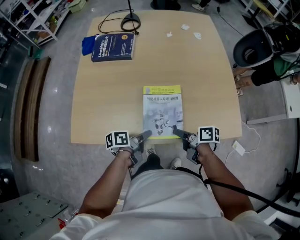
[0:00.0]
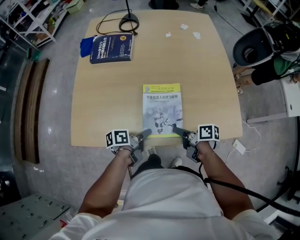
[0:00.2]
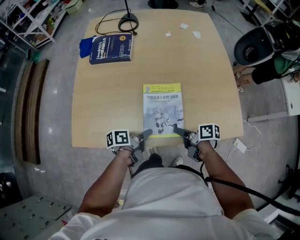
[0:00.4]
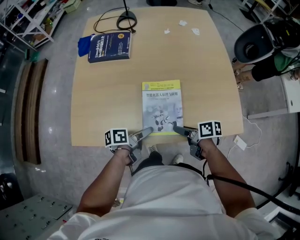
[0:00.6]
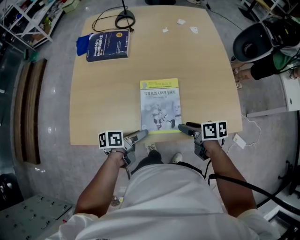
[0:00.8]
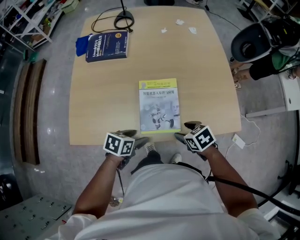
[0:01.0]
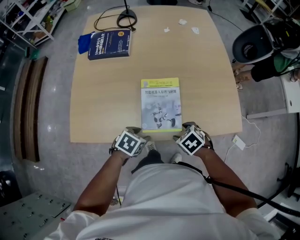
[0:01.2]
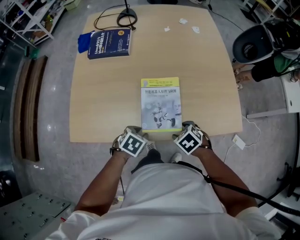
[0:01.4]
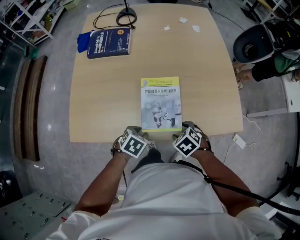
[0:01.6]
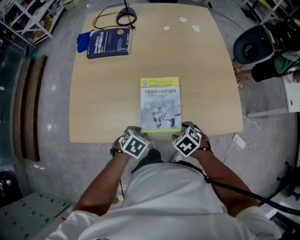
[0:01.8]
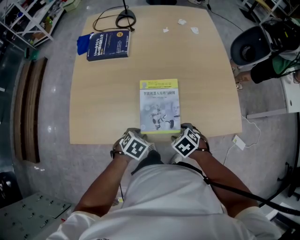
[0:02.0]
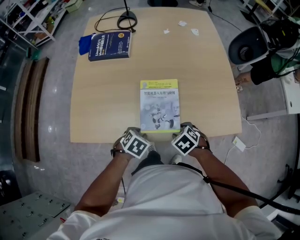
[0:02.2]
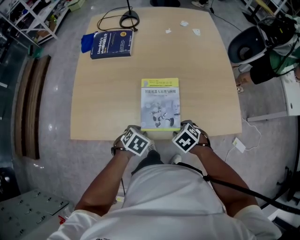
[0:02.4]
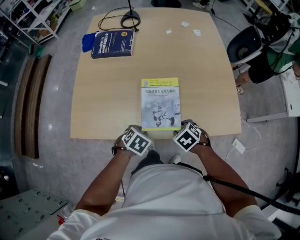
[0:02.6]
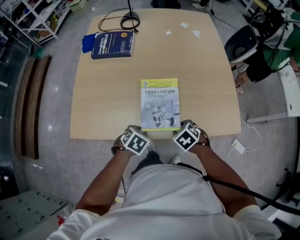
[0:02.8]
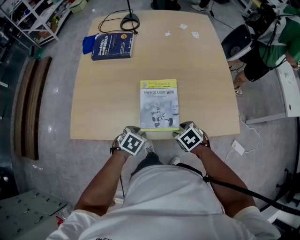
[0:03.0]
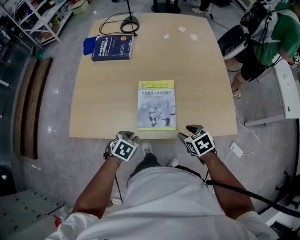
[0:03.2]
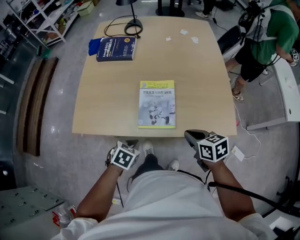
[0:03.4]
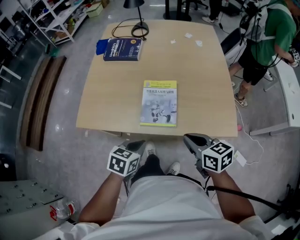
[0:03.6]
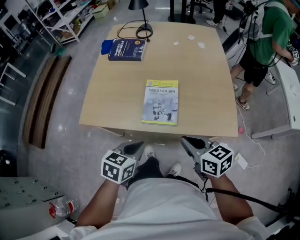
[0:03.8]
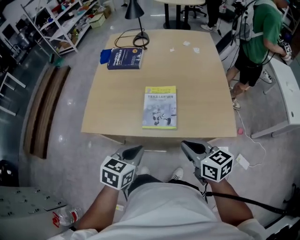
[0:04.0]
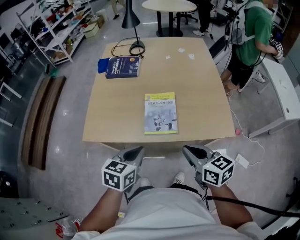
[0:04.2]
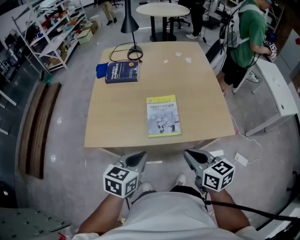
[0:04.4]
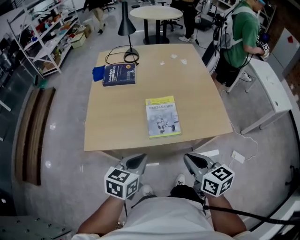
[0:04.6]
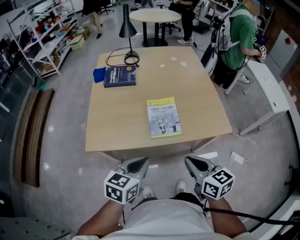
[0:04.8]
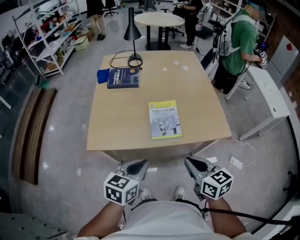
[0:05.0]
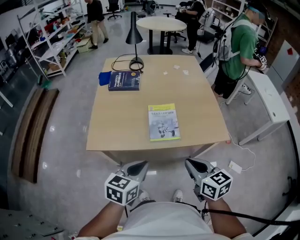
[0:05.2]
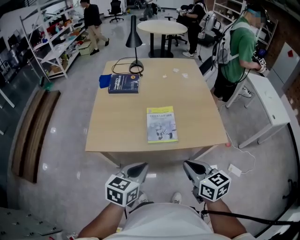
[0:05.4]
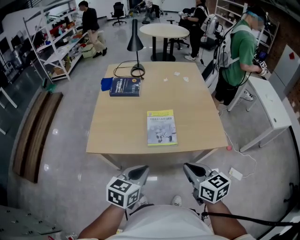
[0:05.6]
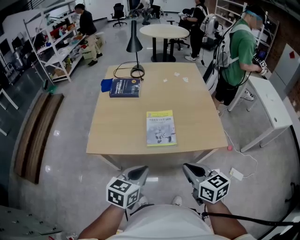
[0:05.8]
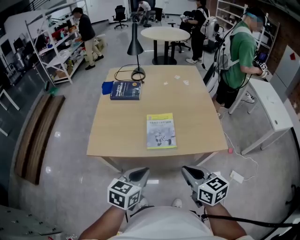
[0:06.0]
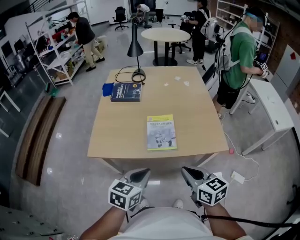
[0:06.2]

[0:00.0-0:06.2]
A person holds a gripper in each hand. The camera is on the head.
0.0 to 1.6 s: The right gripper rolls counterclockwise, seen from behind, by some 70 degrees, and opens. The left gripper rotates around the line of its fingers by approximately 60 degrees, clockwise from behind, and opens and closes again.
1.6 to 3.2 s: The right gripper shifts by roughly 5 cm, and changes its angle by some 20 degrees.
3.2 to 4.6 s: The left gripper shifts roughly 20 cm upward, angles its fingers upward, by some 40 degrees, and closes; the right gripper travels upward, backward and to the left by about 25 cm, points its fingers roughly 40 degrees further upward, and closes up.
4.6 to 6.2 s: The left gripper changes place by some 5 cm.

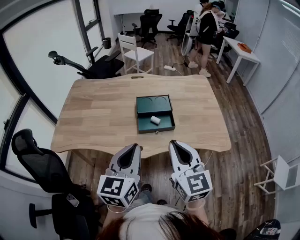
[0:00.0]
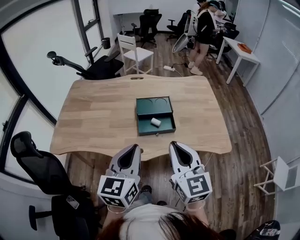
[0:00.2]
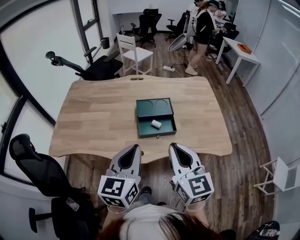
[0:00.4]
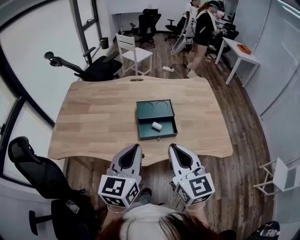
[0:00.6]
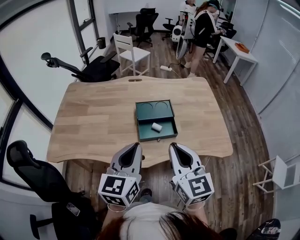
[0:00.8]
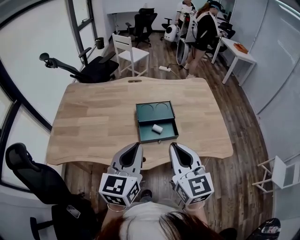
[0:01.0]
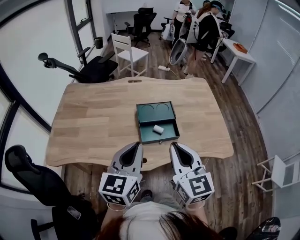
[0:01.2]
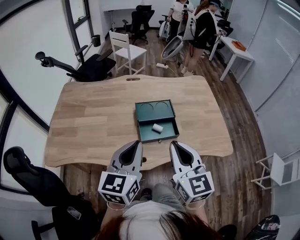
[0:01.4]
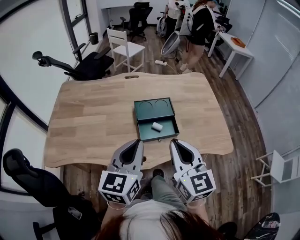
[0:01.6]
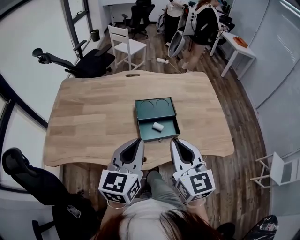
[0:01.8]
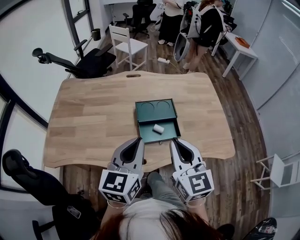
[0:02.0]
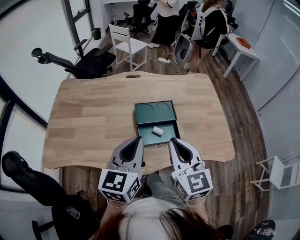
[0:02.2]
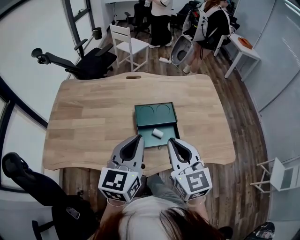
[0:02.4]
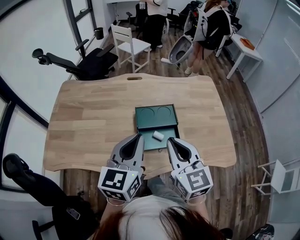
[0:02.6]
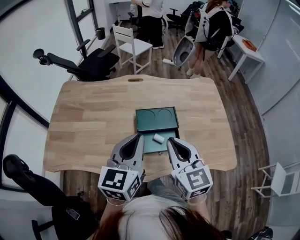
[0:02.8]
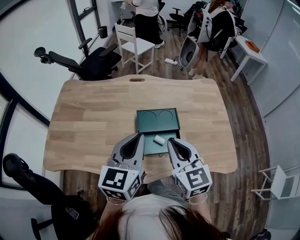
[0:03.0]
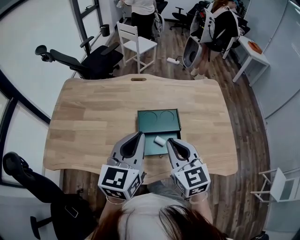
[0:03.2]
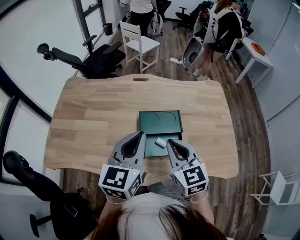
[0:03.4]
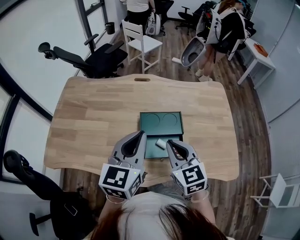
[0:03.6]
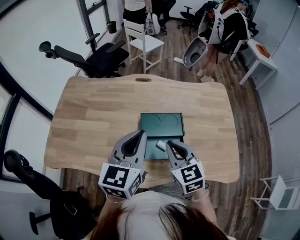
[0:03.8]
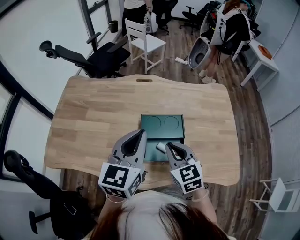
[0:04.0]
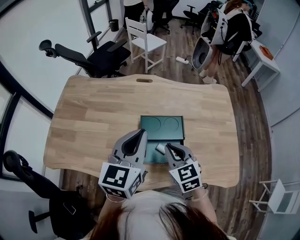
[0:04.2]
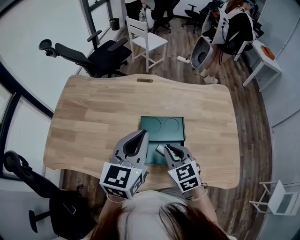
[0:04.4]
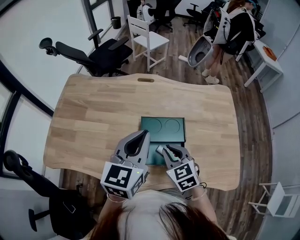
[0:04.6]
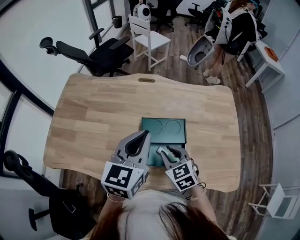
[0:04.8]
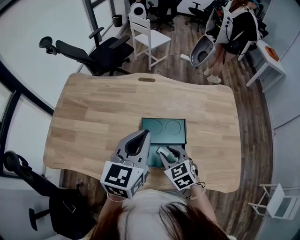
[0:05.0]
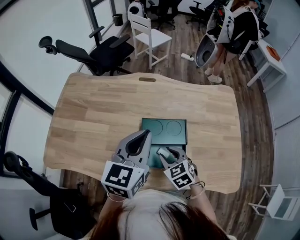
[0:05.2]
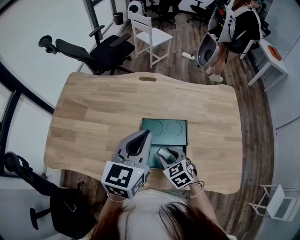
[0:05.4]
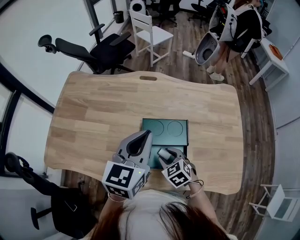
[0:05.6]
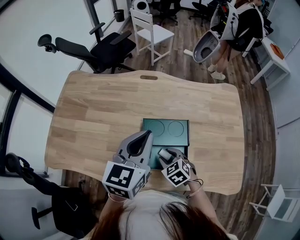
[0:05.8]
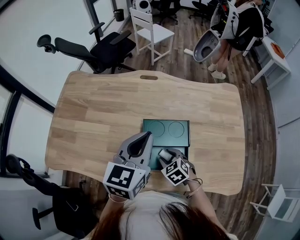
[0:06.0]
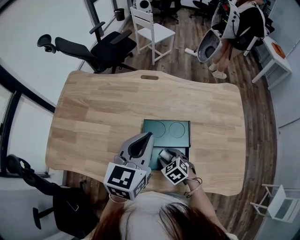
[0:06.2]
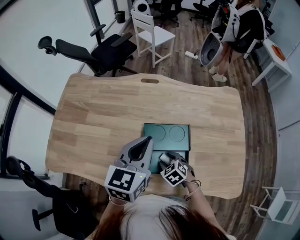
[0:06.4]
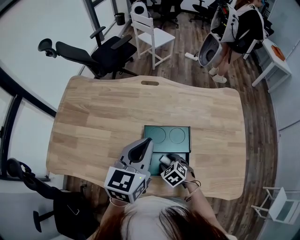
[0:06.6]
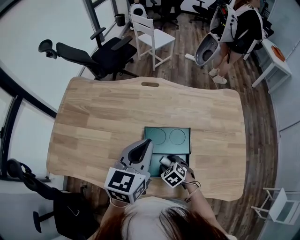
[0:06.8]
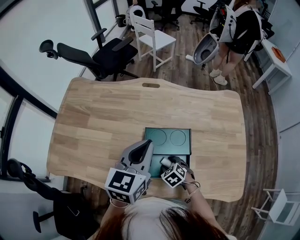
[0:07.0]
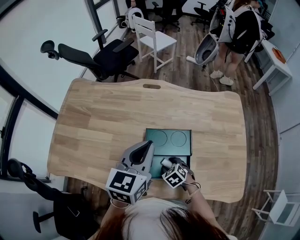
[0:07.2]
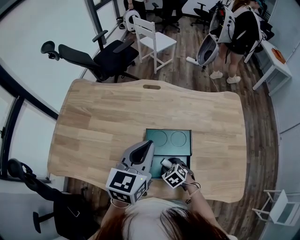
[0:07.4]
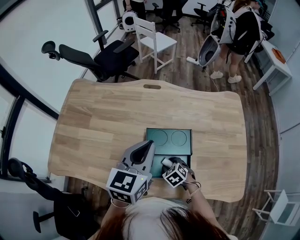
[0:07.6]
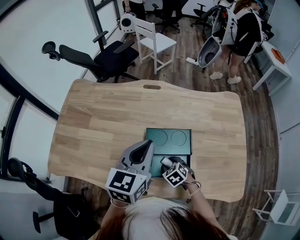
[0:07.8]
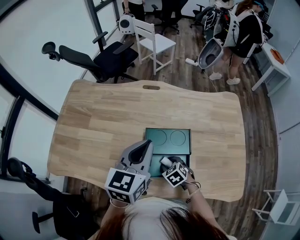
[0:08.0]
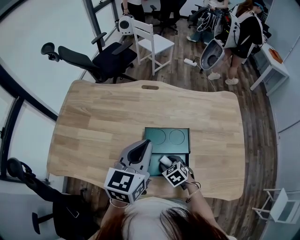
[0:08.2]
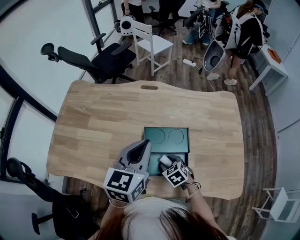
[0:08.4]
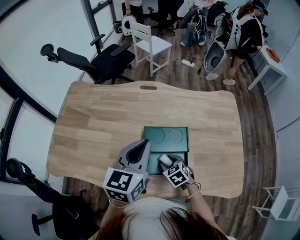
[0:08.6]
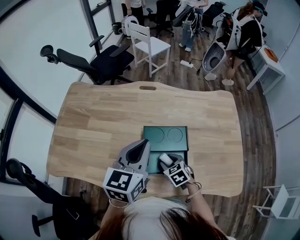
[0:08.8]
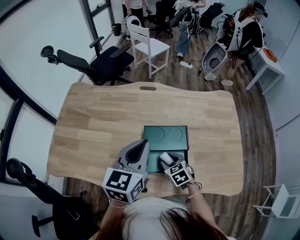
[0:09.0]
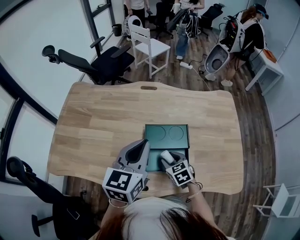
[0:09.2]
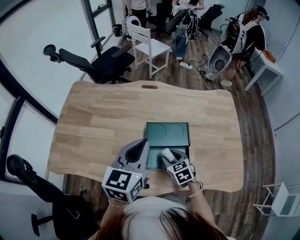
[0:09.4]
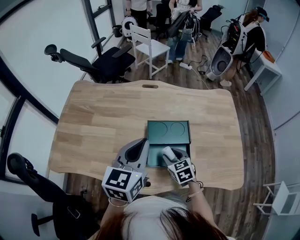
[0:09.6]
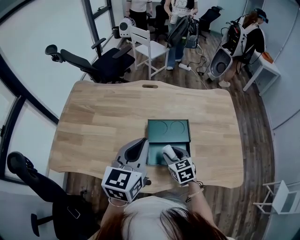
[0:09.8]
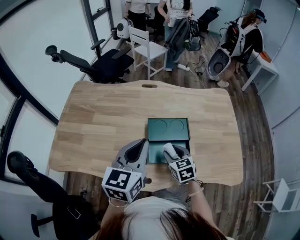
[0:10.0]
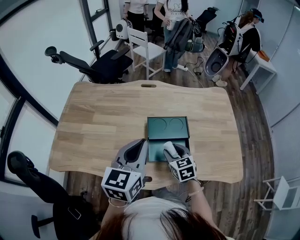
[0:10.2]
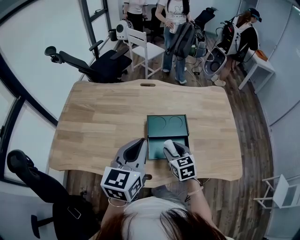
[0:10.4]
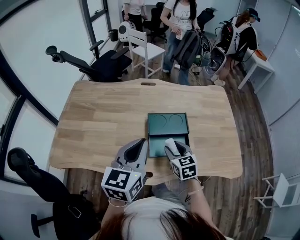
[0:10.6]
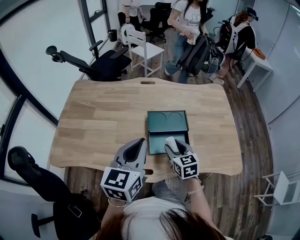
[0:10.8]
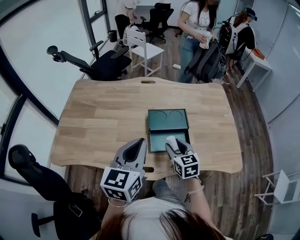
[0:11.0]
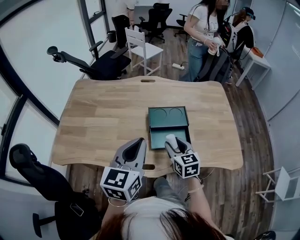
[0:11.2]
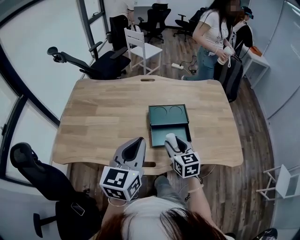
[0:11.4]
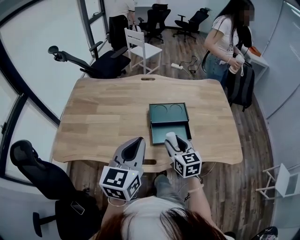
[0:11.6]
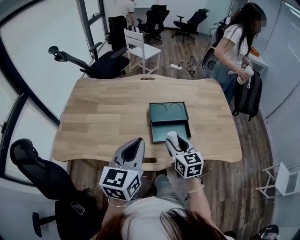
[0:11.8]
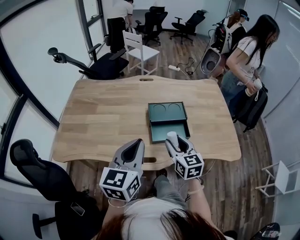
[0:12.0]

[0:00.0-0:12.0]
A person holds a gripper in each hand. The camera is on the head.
0.0 to 1.6 s: Both grippers travel together forward, some 10 cm.
1.6 to 3.0 s: The grippers both shift forward by about 10 cm.
3.0 to 4.4 s: The left gripper moves forward, roughly 10 cm; the right gripper is displaced downward and forward by about 15 cm, and turns by about 20 degrees.
4.4 to 6.0 s: The right gripper goes about 15 cm downward, swivels about 30 degrees, and opens its fingers, while the left gripper moves forward, roughly 5 cm.
6.0 to 7.6 s: The right gripper moves downward, roughly 5 cm.
7.6 to 9.0 s: The right gripper travels upward by some 5 cm.
9.0 to 10.4 s: The right gripper heads upward, covering approximately 10 cm, and rotates about 20 degrees. Meanwhile the left gripper travels backward by about 10 cm.
10.4 to 12.0 s: The right gripper travels backward and upward by roughly 15 cm. The left gripper heads backward, covering approximately 10 cm.

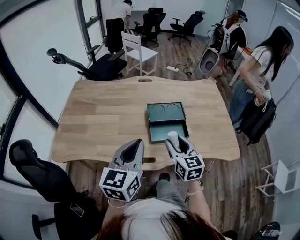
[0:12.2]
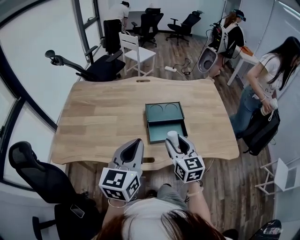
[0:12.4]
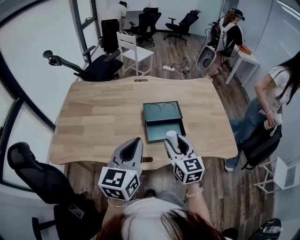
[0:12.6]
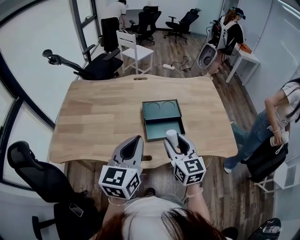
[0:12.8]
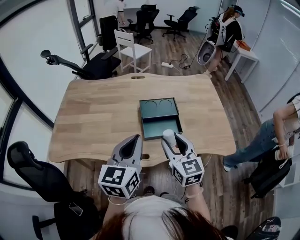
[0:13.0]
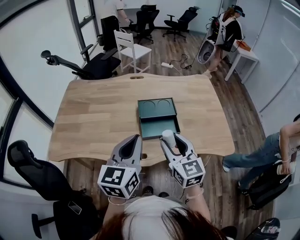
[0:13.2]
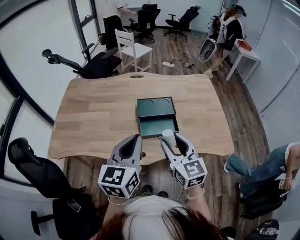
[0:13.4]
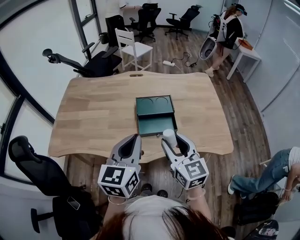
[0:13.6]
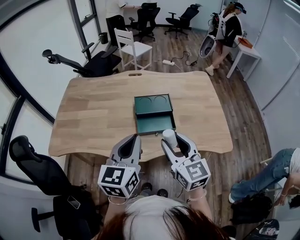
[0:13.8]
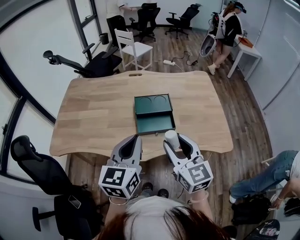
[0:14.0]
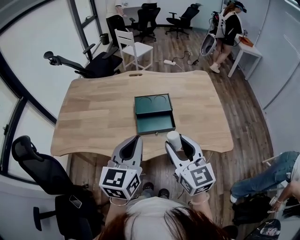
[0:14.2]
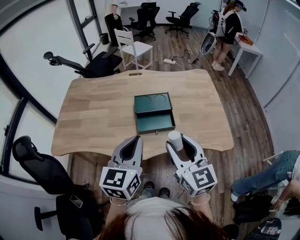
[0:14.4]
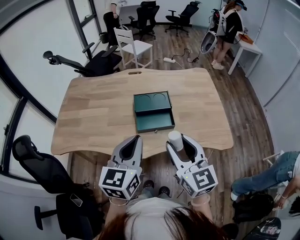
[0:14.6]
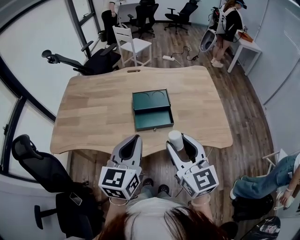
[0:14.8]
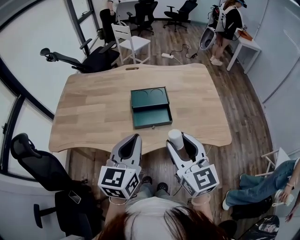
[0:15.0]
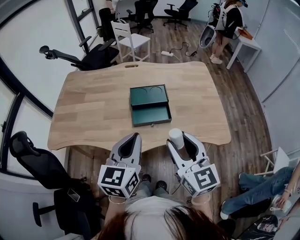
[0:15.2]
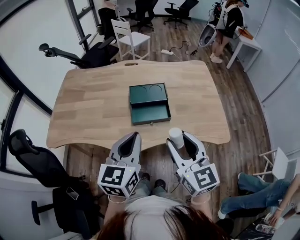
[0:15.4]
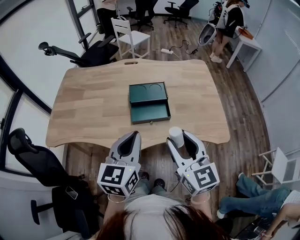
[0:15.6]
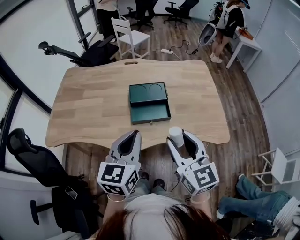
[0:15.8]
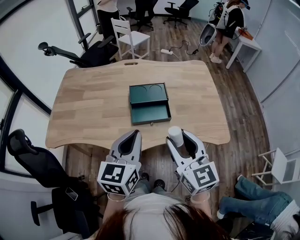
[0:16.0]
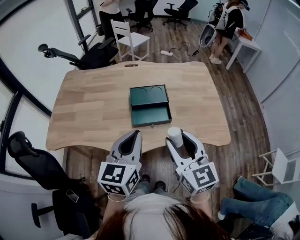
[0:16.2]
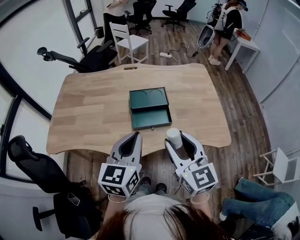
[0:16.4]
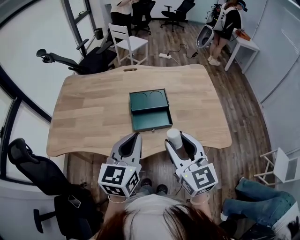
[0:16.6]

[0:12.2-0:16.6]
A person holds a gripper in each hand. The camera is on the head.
12.2 to 13.6 s: The left gripper heads to the right, covering some 5 cm. Meanwhile the right gripper travels upward, backward and to the right by approximately 10 cm.
13.6 to 15.2 s: The left gripper changes place by some 5 cm, while the right gripper travels backward and to the right by some 10 cm.
15.2 to 16.6 s: The grippers stay close to where they were, moving slightly.

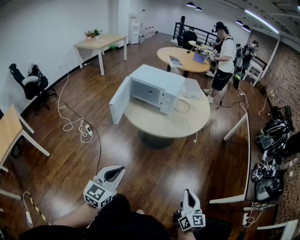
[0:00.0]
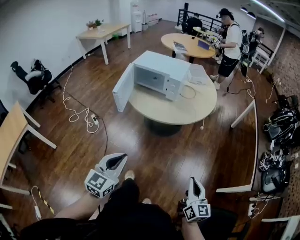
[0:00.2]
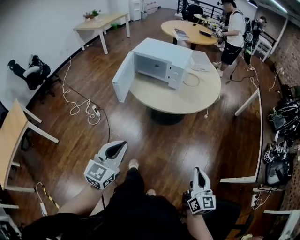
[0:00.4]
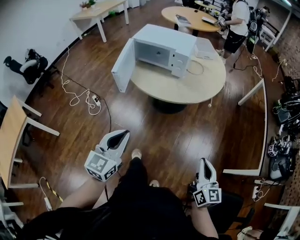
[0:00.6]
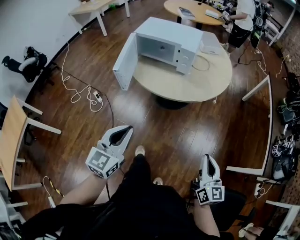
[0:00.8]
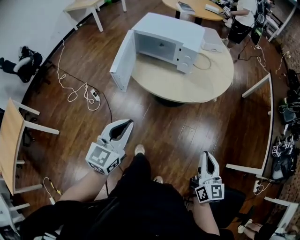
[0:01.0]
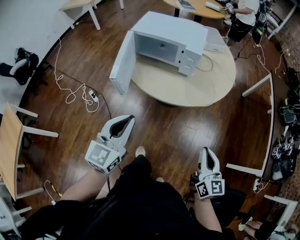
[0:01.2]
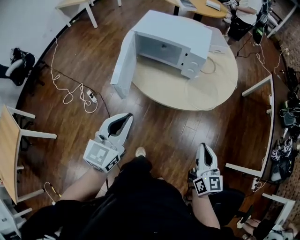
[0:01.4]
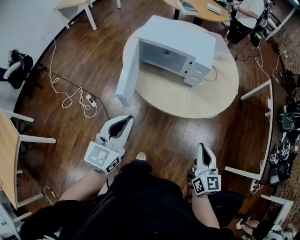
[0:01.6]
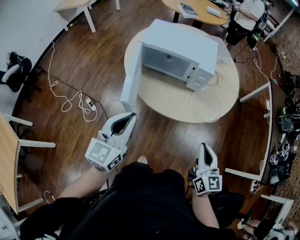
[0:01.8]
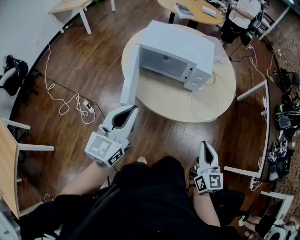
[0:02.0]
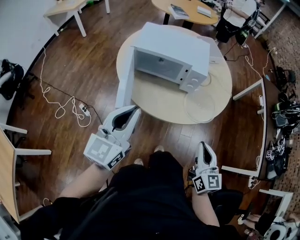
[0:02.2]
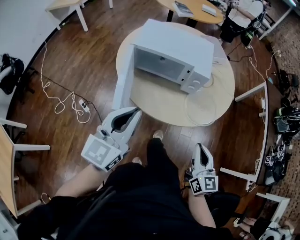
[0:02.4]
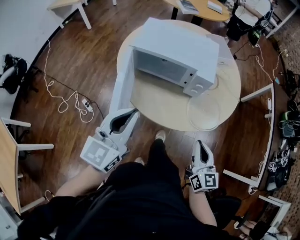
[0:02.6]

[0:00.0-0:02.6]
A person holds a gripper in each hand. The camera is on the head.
0.0 to 1.2 s: The right gripper shifts about 20 cm forward and to the left. The left gripper is displaced forward by approximately 20 cm.
1.2 to 2.6 s: The right gripper moves forward and to the left, about 20 cm; the left gripper heads forward, covering some 15 cm.
